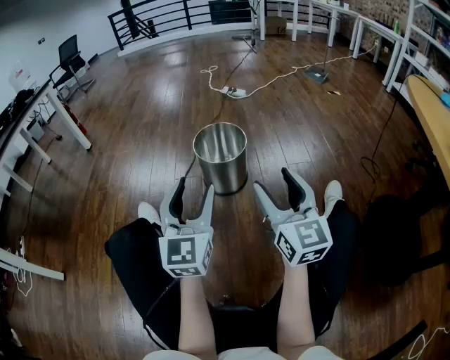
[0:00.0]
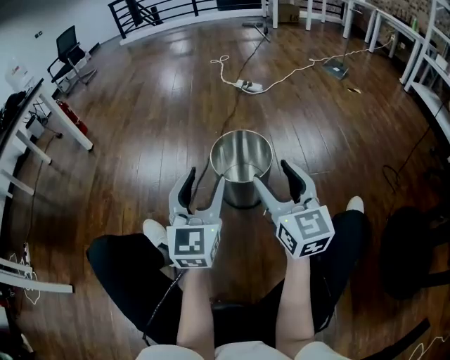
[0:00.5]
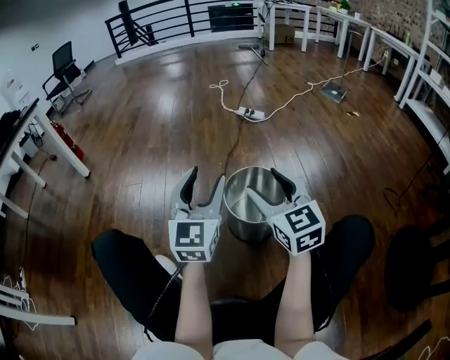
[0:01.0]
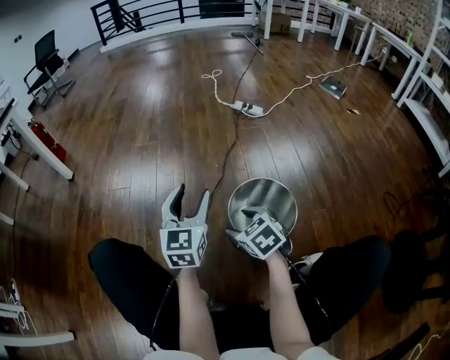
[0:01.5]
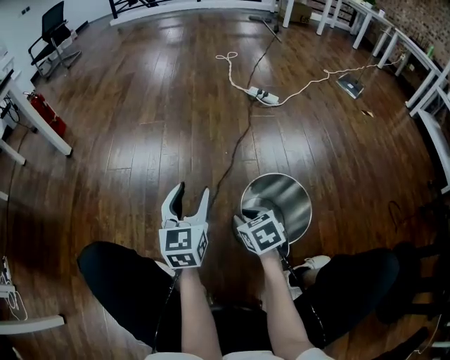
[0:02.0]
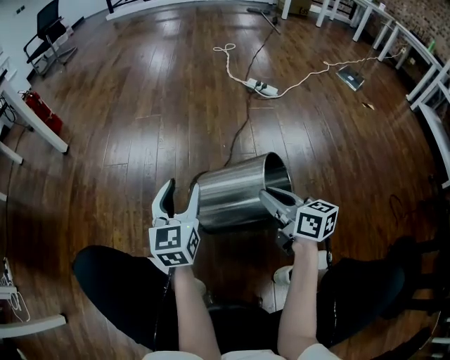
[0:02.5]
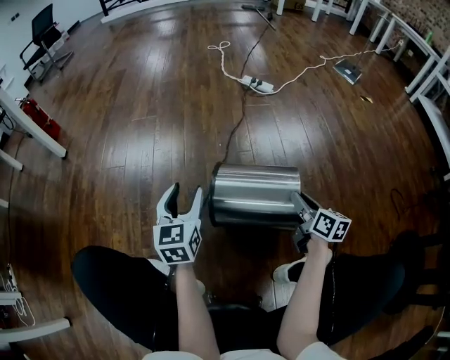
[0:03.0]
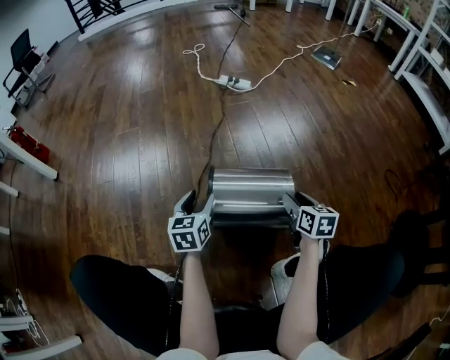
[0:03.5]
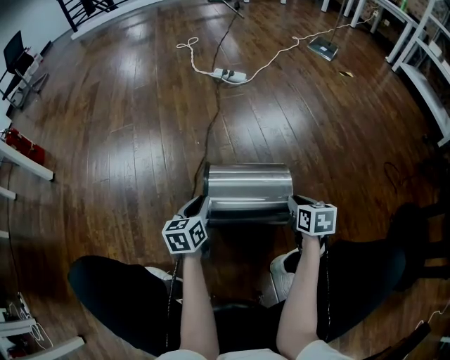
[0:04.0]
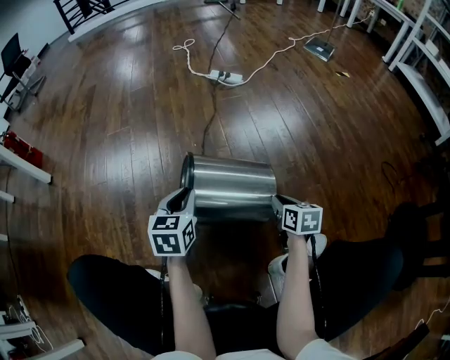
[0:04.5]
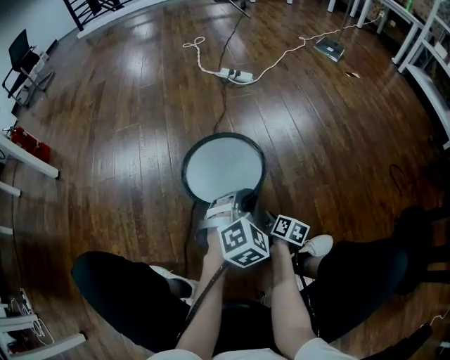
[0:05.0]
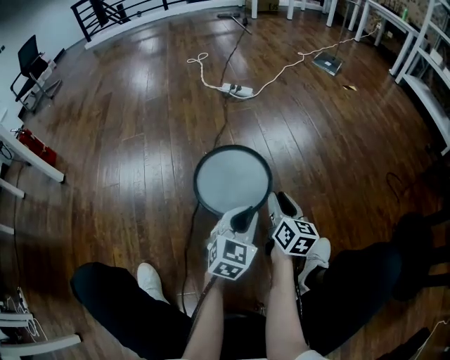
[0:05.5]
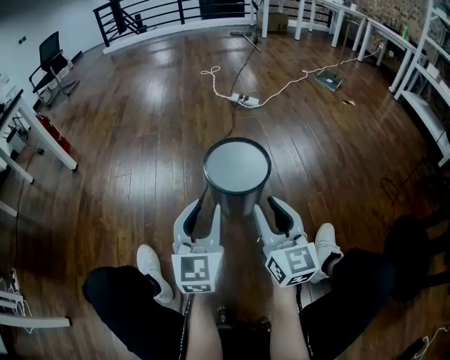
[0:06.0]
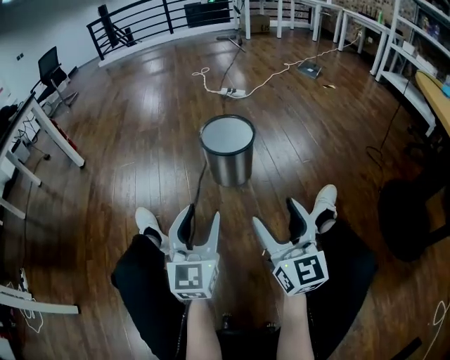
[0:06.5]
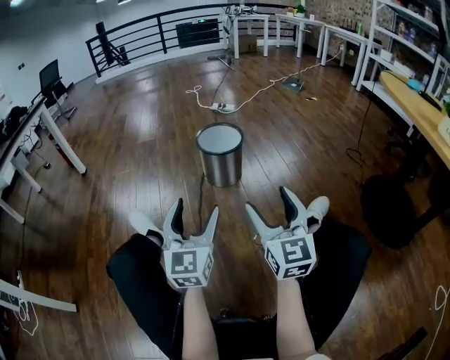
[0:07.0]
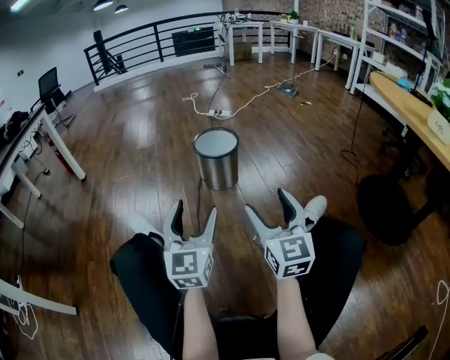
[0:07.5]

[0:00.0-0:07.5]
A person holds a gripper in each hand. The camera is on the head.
0:00.0 to 0:02.0: The pair of grippers is taken forward and to the left, approximately 40 cm. The right gripper moves downward, some 30 cm, tilts its fingers approximately 60 degrees downward, and closes its fingers. The left gripper rotates some 20 degrees.
0:02.0 to 0:04.0: The left gripper heads downward, covering approximately 15 cm, turns by roughly 30 degrees, and closes, while the right gripper goes upward and returns, some 10 cm each way, and turns by approximately 40 degrees.
0:04.0 to 0:05.5: The right gripper is displaced upward and to the left by roughly 10 cm, and angles its fingers upward, by some 30 degrees, while the left gripper goes roughly 15 cm to the right and upward, and twists roughly 40 degrees clockwise, seen from behind.
0:05.5 to 0:07.5: The pair of grippers is taken backward, some 40 cm. The two grippers go approximately 25 cm upward. The left gripper changes its angle by approximately 40 degrees, and opens. Meanwhile the right gripper changes its angle by approximately 40 degrees, and opens up.

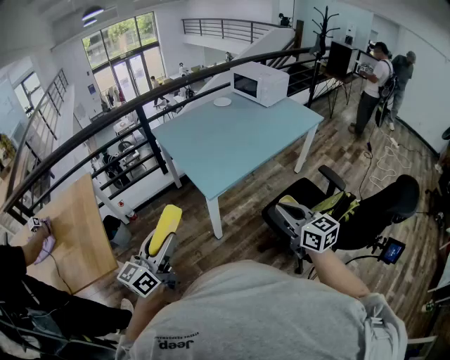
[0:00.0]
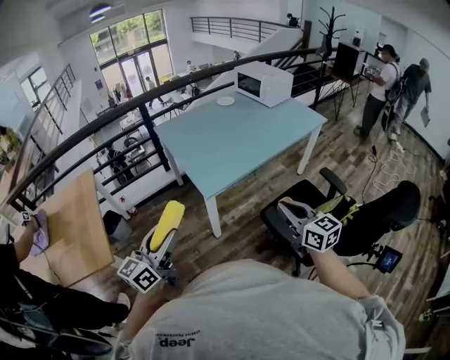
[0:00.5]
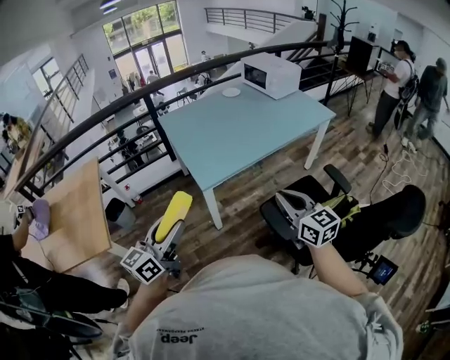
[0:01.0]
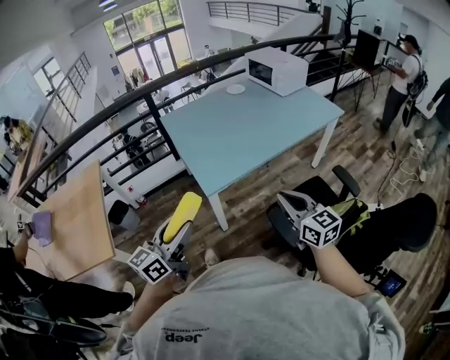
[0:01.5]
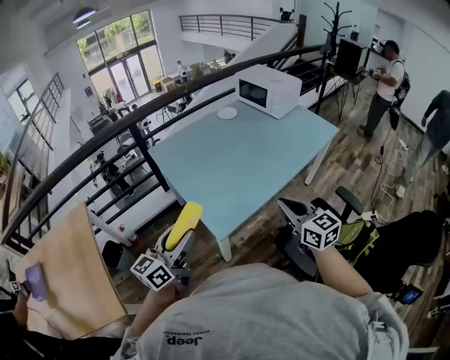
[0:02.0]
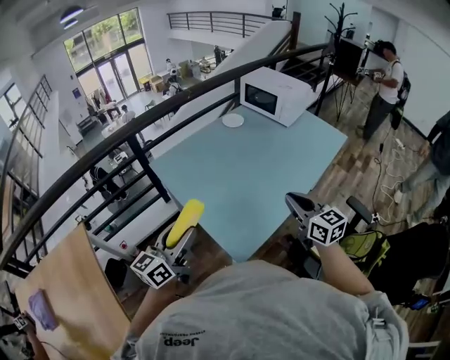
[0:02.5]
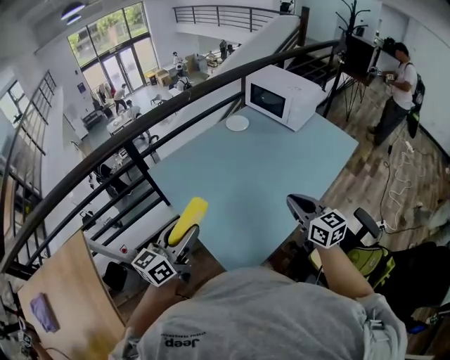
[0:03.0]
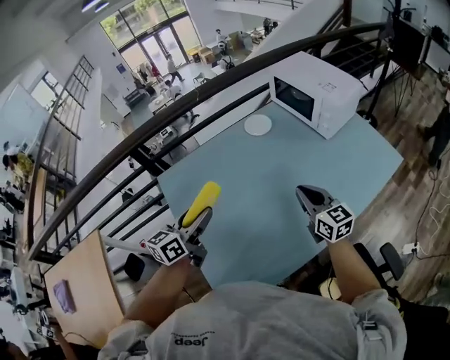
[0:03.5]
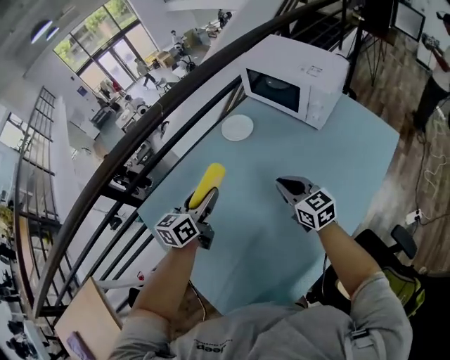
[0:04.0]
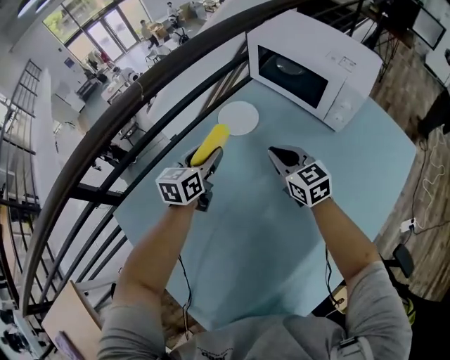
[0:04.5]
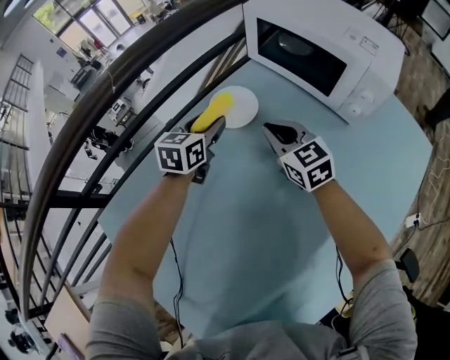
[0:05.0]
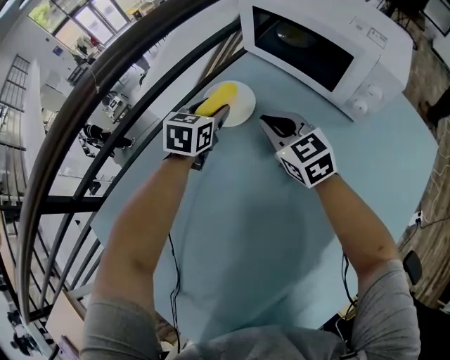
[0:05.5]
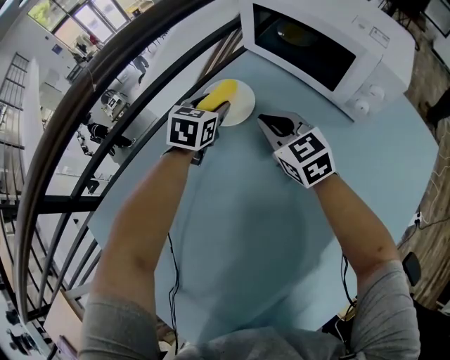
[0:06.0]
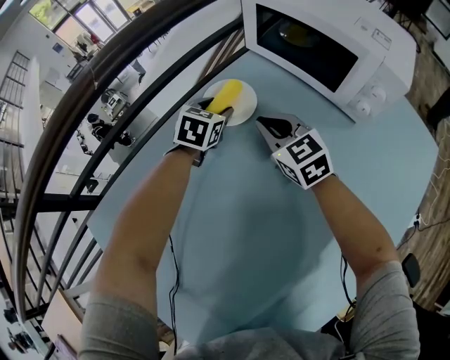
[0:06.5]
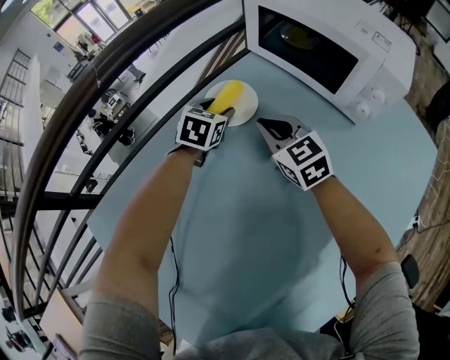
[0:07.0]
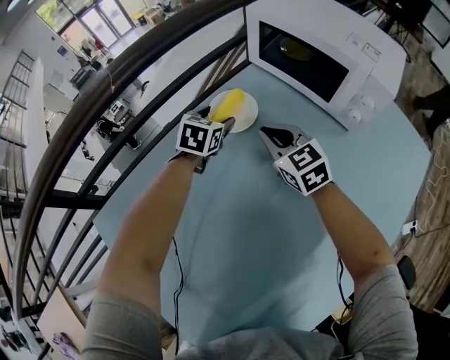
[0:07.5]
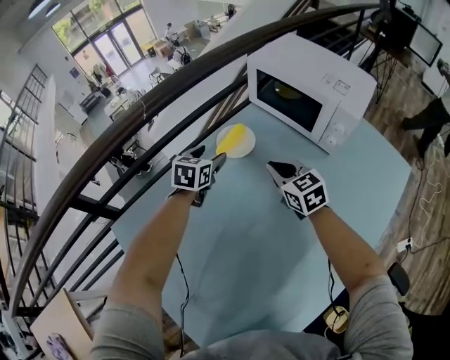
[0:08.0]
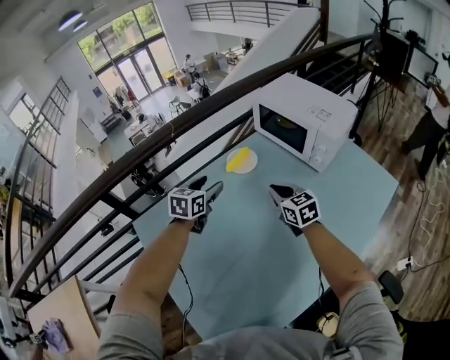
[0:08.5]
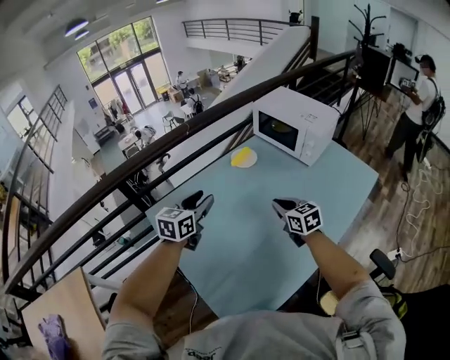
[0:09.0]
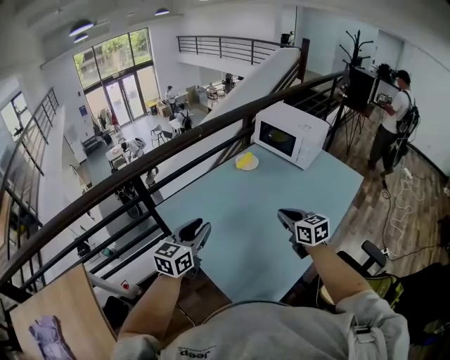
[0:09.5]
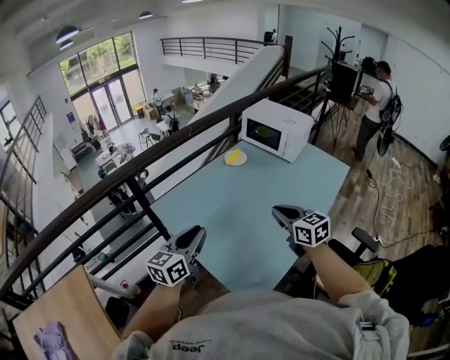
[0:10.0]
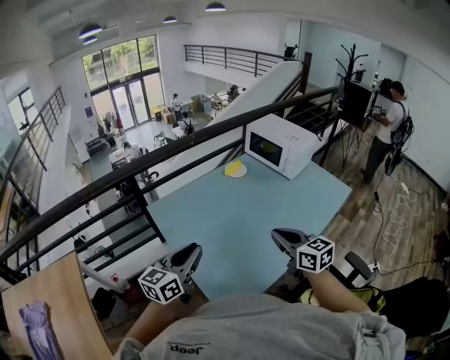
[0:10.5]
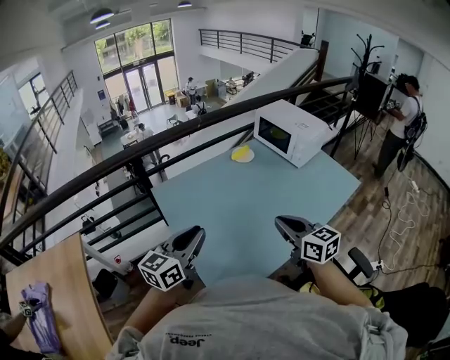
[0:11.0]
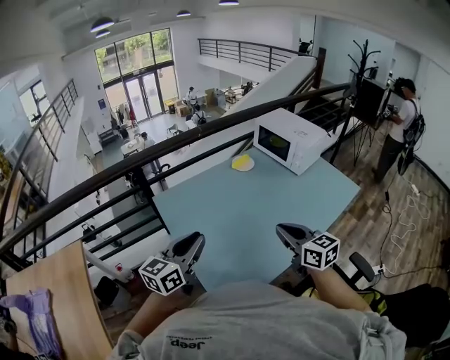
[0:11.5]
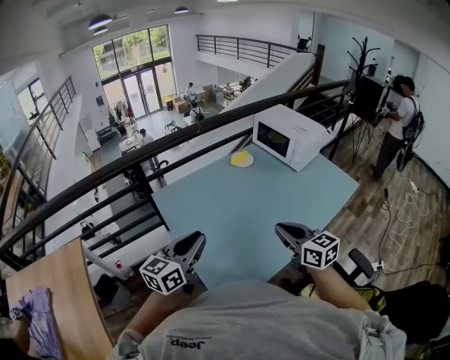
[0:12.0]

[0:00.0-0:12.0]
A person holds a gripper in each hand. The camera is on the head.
0:00.0 to 0:02.0: The grippers both shift forward by some 25 cm.
0:02.0 to 0:04.0: The pair of grippers is taken forward, approximately 60 cm.
0:04.0 to 0:06.0: The two grippers go some 35 cm forward and downward. The left gripper turns by roughly 30 degrees.
0:06.0 to 0:08.0: The left gripper is displaced backward, upward and to the left by about 15 cm, while the right gripper travels backward and upward by some 10 cm.
0:08.0 to 0:10.0: The two grippers travel together, backward, about 50 cm. The grippers both shift upward by about 25 cm. The left gripper tips its fingers upward by some 30 degrees, and closes its fingers.
0:10.0 to 0:12.0: The two grippers go roughly 10 cm to the right and backward.

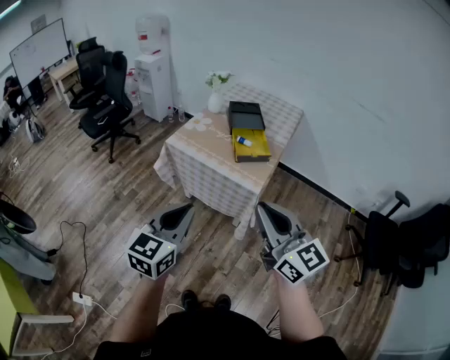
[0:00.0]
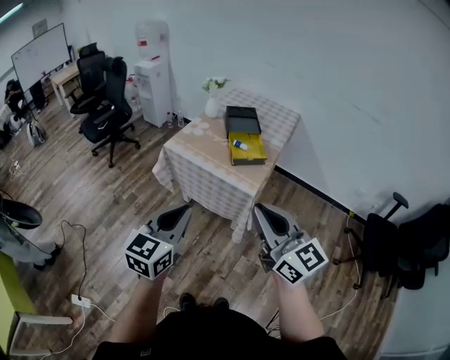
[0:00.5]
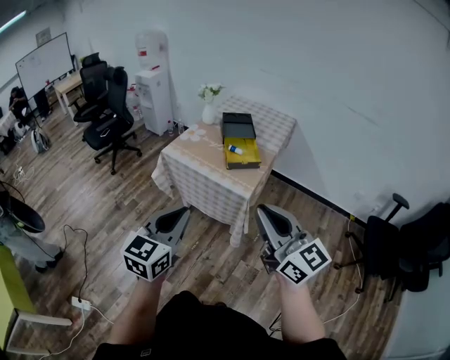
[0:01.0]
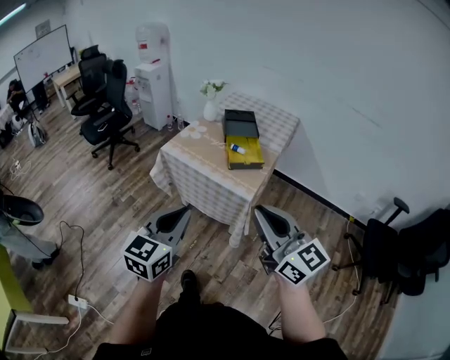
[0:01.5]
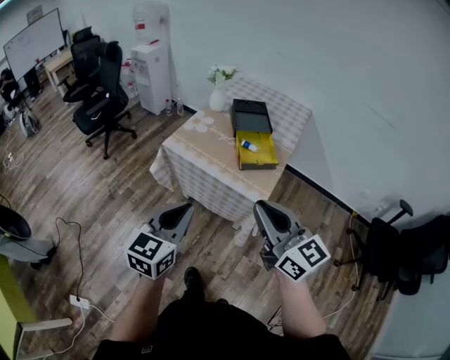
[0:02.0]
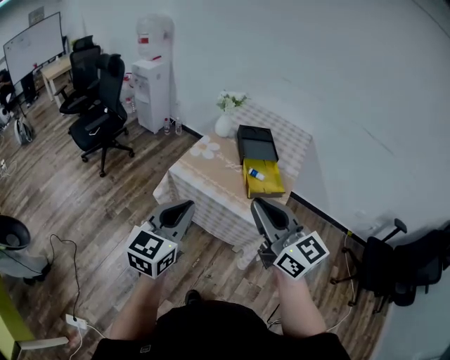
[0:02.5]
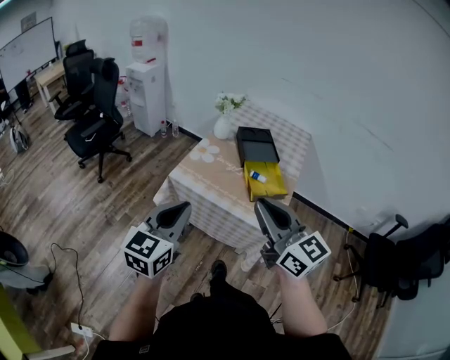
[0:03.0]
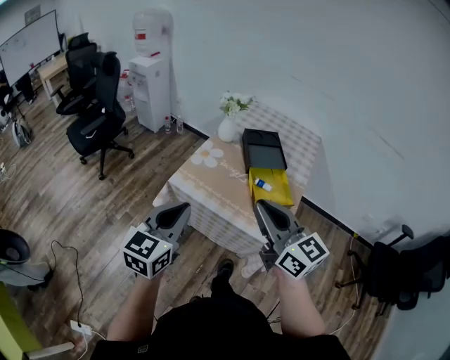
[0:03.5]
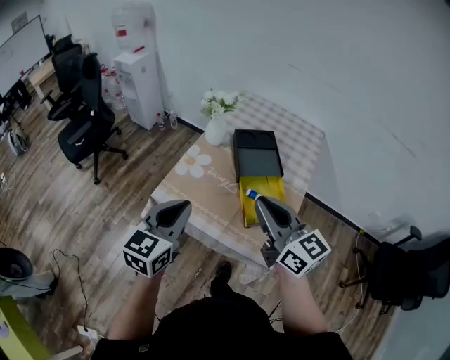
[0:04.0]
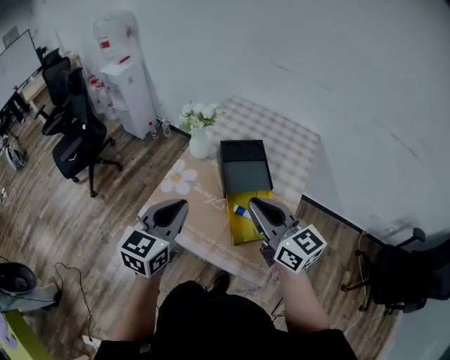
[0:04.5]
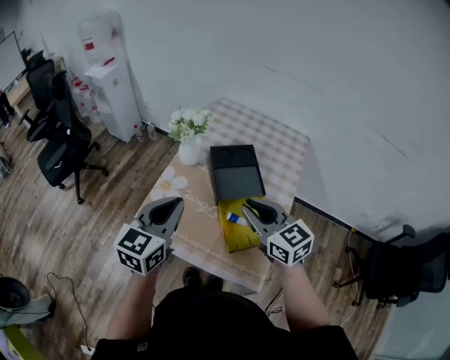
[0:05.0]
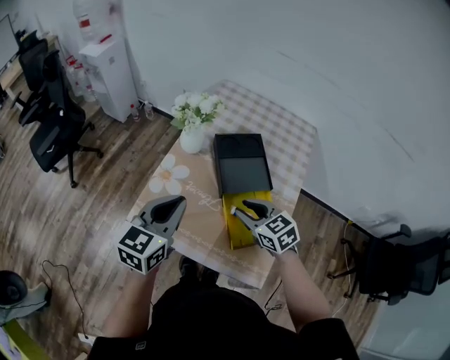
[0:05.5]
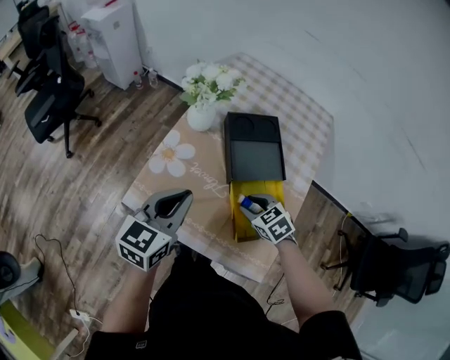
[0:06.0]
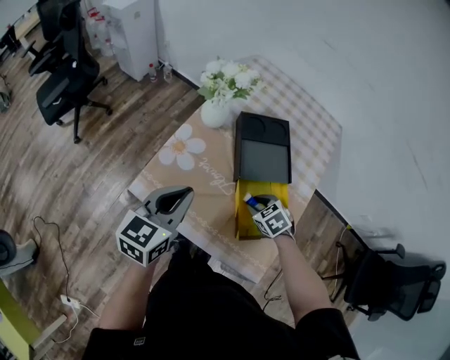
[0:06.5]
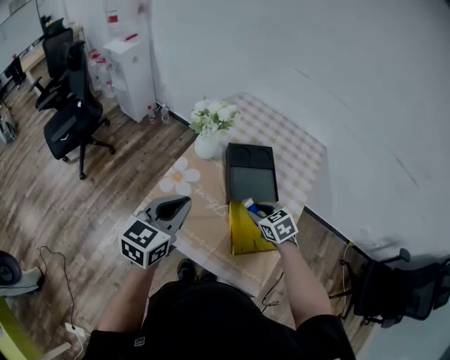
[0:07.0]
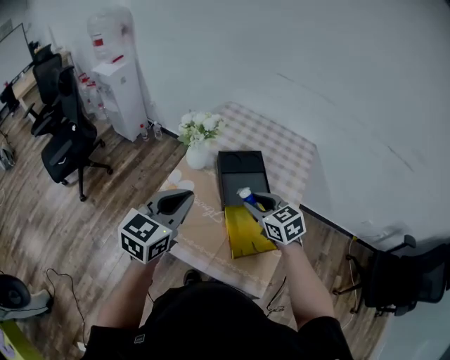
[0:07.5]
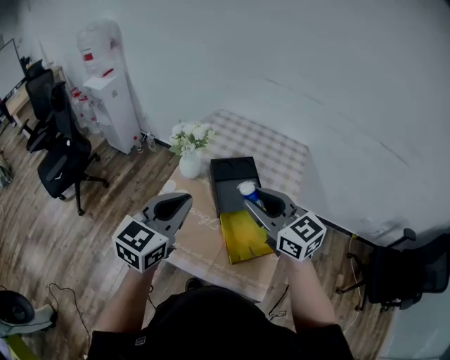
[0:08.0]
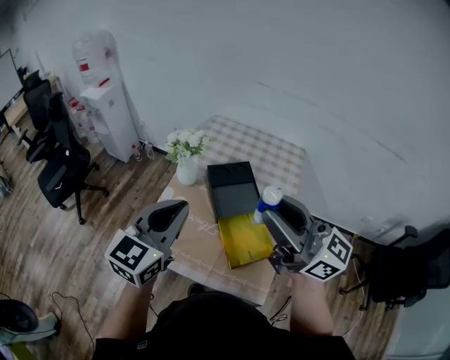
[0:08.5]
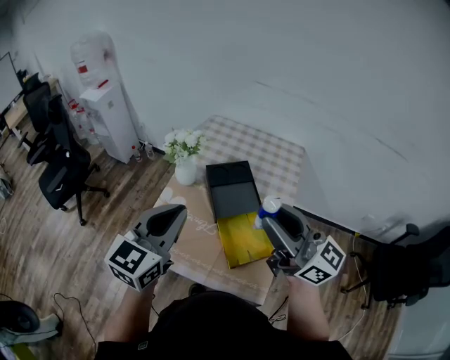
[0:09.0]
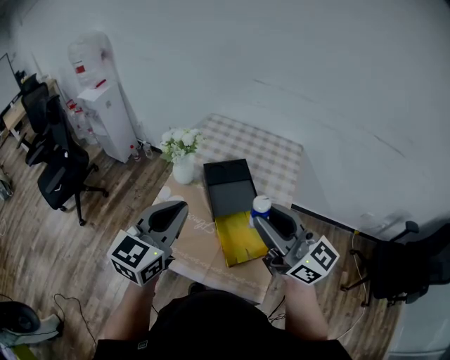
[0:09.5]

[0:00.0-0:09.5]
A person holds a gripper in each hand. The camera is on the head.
0:00.0 to 0:02.0: Both grippers move forward, about 10 cm.
0:02.0 to 0:04.0: The grippers both shift forward by roughly 30 cm.
0:04.0 to 0:05.5: The right gripper shifts some 25 cm downward and forward, and points its fingers approximately 40 degrees further downward, while the left gripper travels forward by about 15 cm.
0:05.5 to 0:07.5: The left gripper shifts about 5 cm upward. Meanwhile the right gripper travels downward and back again, roughly 15 cm each way.
0:07.5 to 0:09.5: The right gripper is displaced upward and backward by roughly 25 cm, and angles its fingers upward, by some 50 degrees; the left gripper is displaced upward by about 5 cm.
